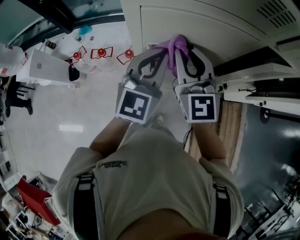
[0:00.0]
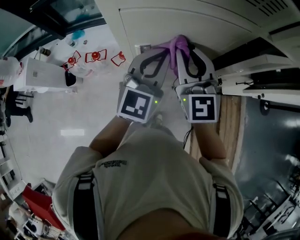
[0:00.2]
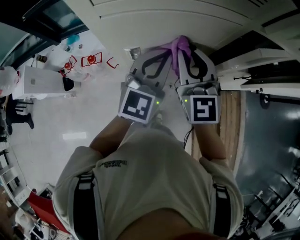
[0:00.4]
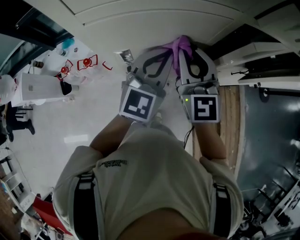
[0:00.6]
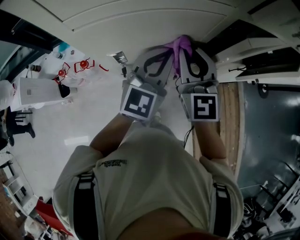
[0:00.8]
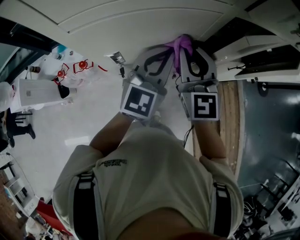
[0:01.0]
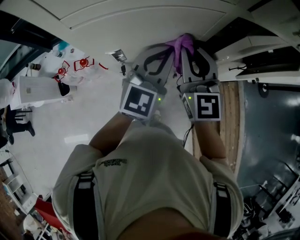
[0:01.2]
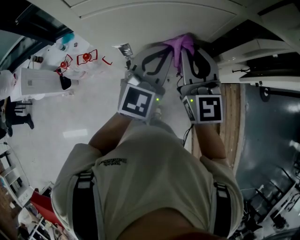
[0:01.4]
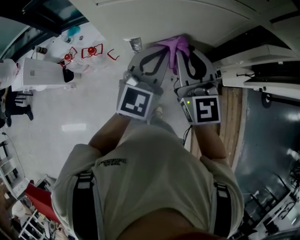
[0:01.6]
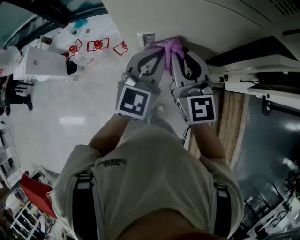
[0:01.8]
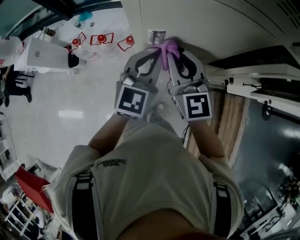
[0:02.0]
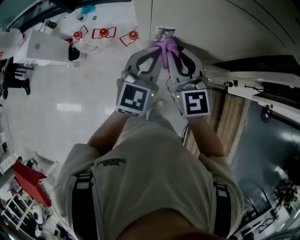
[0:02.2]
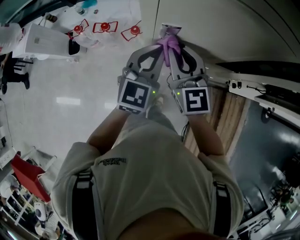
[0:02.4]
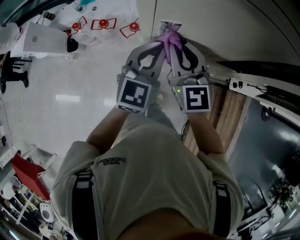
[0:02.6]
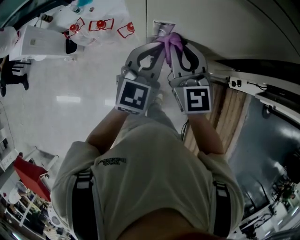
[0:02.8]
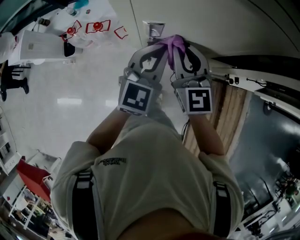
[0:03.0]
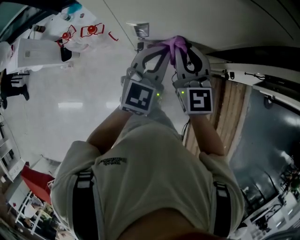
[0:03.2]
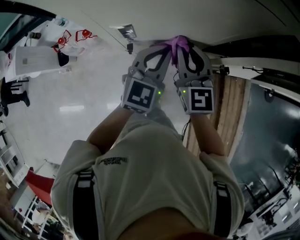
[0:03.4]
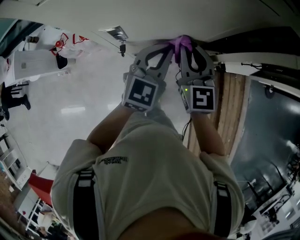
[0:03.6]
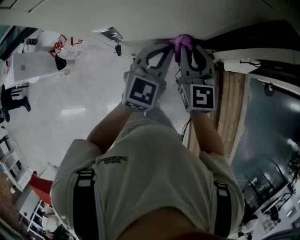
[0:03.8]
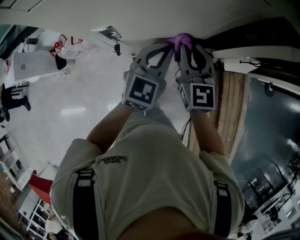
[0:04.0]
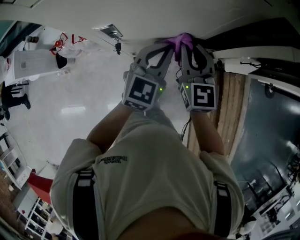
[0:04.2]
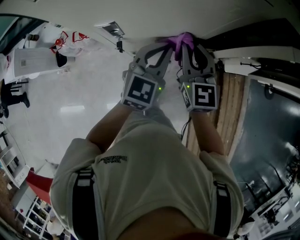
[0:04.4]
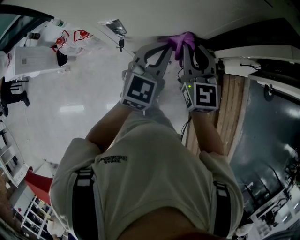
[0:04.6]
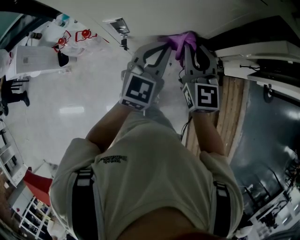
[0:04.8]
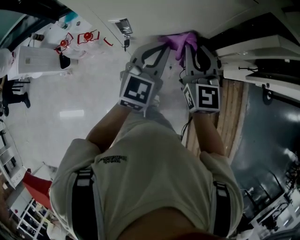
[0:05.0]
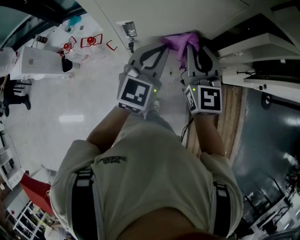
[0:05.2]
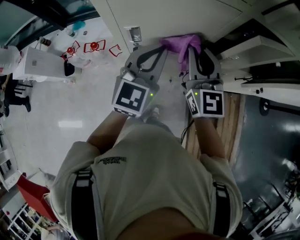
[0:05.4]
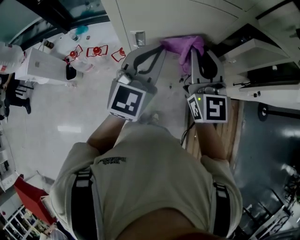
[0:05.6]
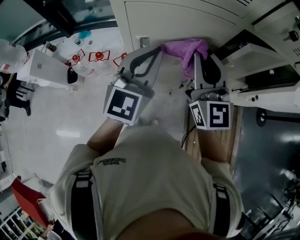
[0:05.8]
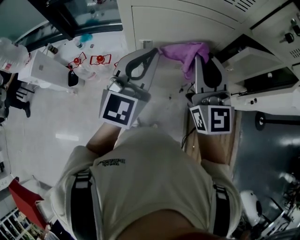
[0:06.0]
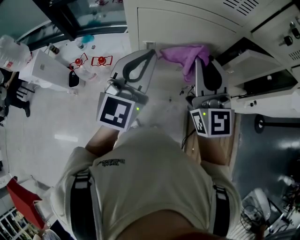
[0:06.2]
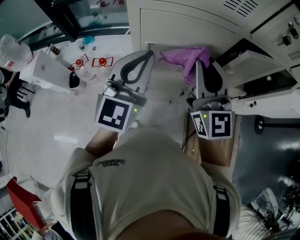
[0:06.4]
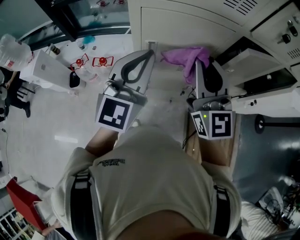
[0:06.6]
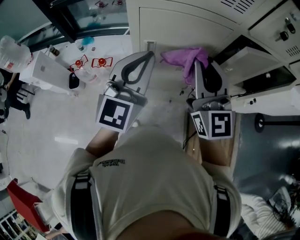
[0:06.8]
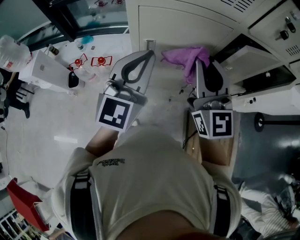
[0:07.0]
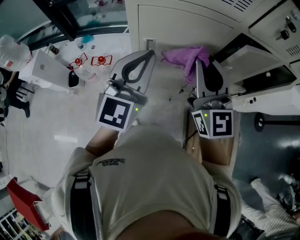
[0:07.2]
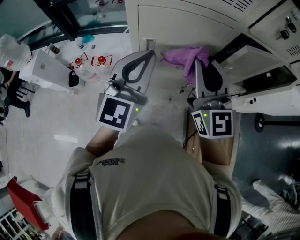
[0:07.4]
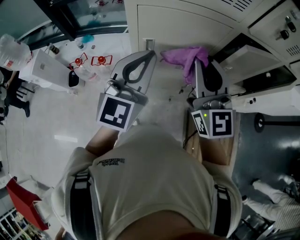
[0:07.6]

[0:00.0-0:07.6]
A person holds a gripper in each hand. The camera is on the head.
0.0 to 1.6 s: The grippers both shift to the right by approximately 5 cm.
1.6 to 3.0 s: The left gripper heads downward, covering roughly 10 cm; the right gripper is displaced downward and to the left by approximately 10 cm.
3.0 to 4.6 s: Both grippers travel together to the right, about 10 cm.
4.6 to 6.0 s: The left gripper moves upward and to the left, roughly 25 cm, and swivels approximately 20 degrees. The right gripper is displaced upward by roughly 20 cm, and turns by about 20 degrees.
6.0 to 7.6 s: The grippers stay close to where they were, moving slightly.

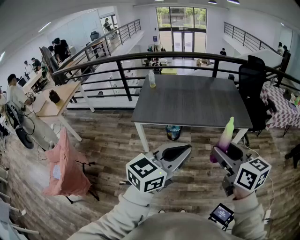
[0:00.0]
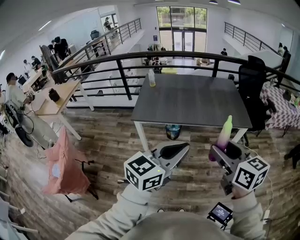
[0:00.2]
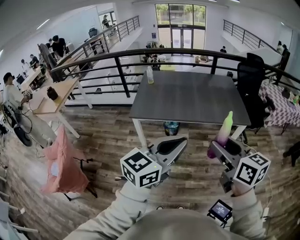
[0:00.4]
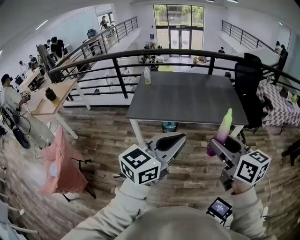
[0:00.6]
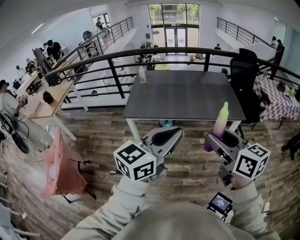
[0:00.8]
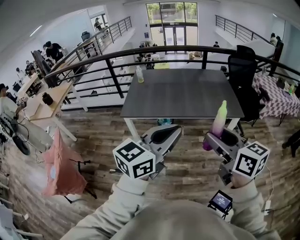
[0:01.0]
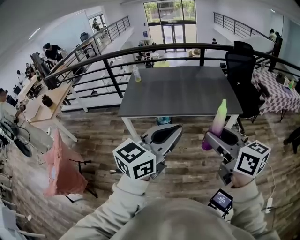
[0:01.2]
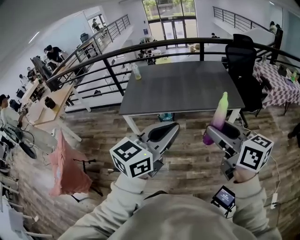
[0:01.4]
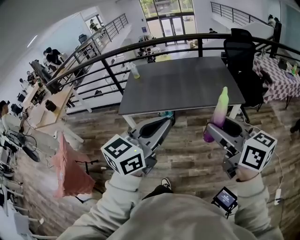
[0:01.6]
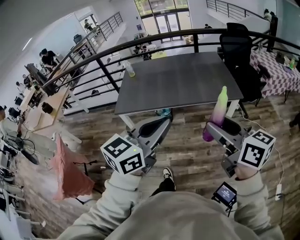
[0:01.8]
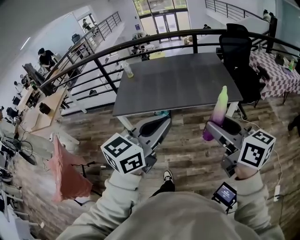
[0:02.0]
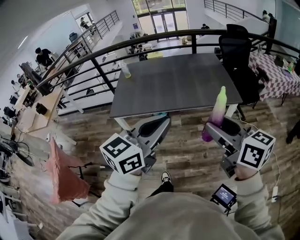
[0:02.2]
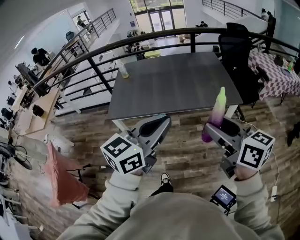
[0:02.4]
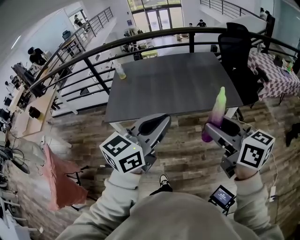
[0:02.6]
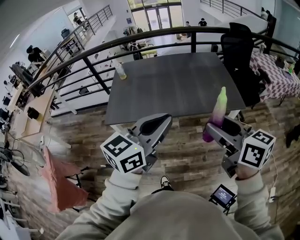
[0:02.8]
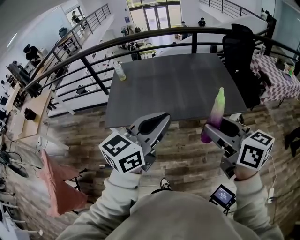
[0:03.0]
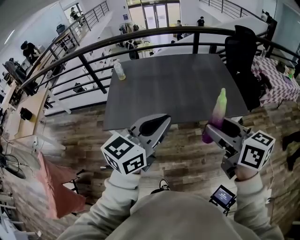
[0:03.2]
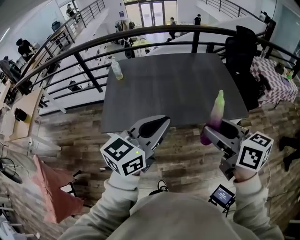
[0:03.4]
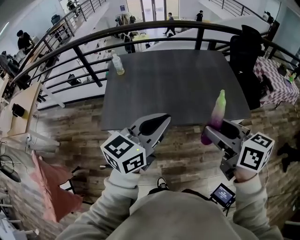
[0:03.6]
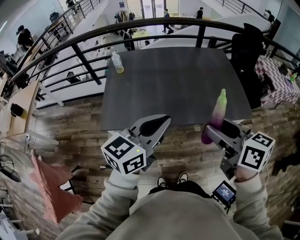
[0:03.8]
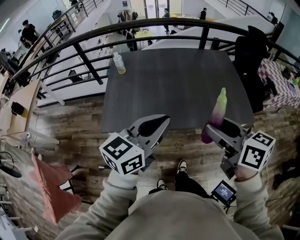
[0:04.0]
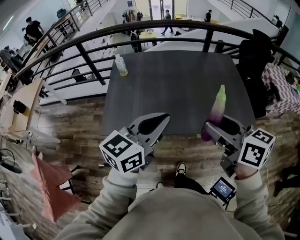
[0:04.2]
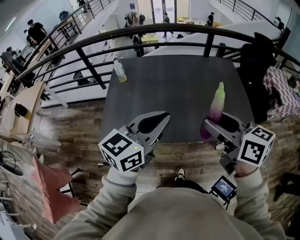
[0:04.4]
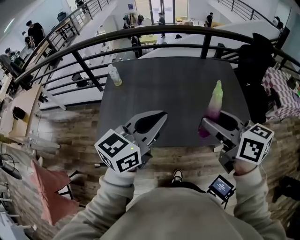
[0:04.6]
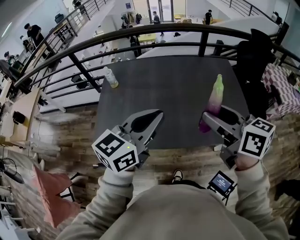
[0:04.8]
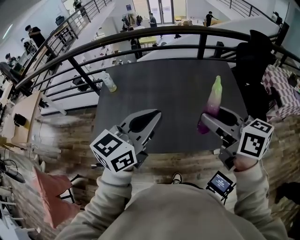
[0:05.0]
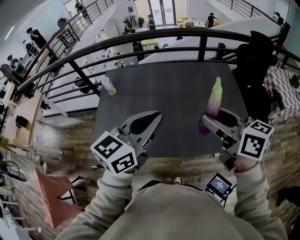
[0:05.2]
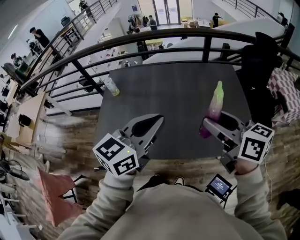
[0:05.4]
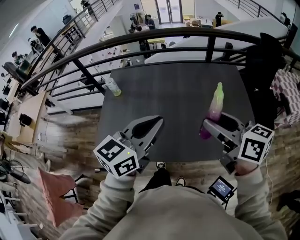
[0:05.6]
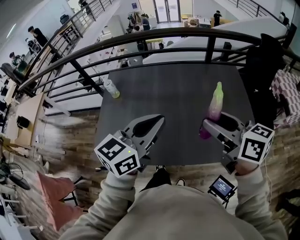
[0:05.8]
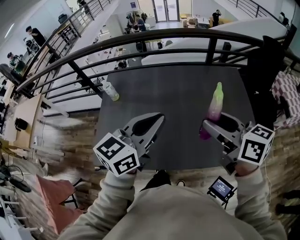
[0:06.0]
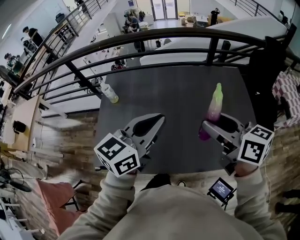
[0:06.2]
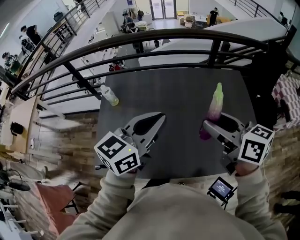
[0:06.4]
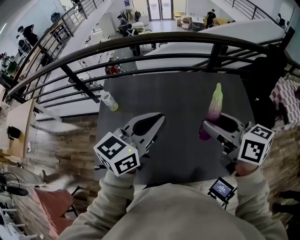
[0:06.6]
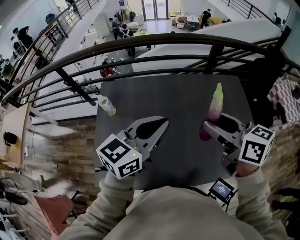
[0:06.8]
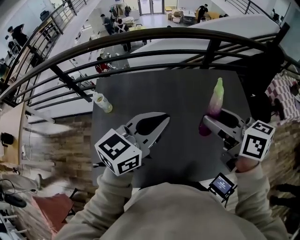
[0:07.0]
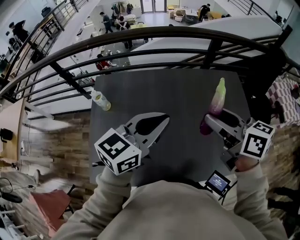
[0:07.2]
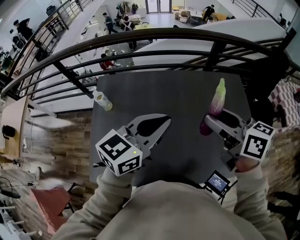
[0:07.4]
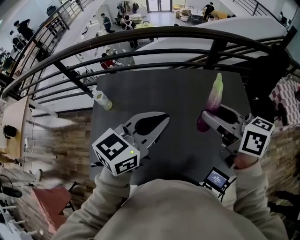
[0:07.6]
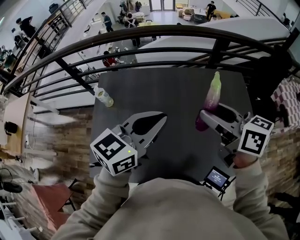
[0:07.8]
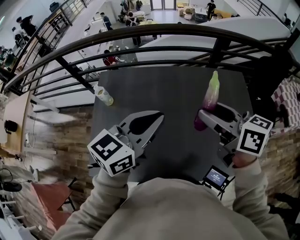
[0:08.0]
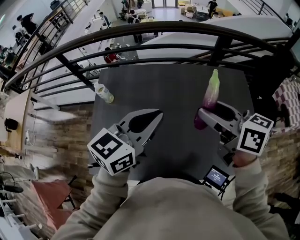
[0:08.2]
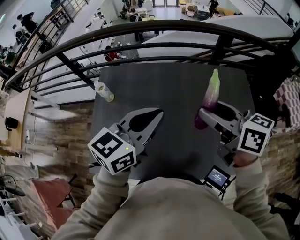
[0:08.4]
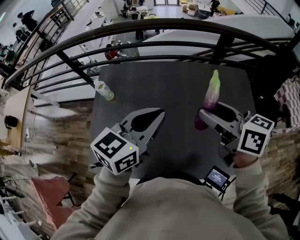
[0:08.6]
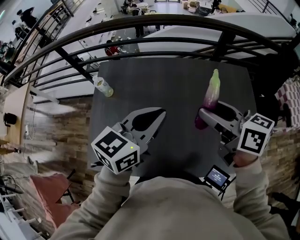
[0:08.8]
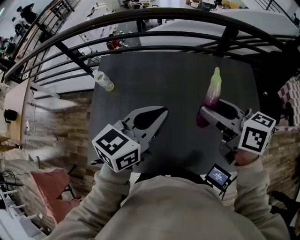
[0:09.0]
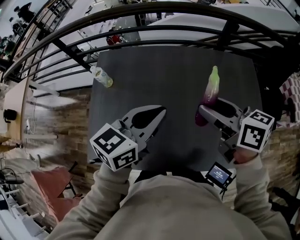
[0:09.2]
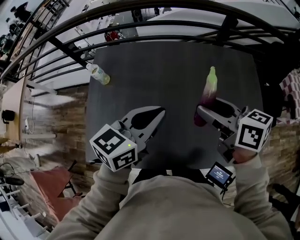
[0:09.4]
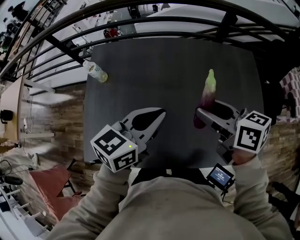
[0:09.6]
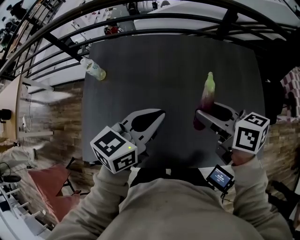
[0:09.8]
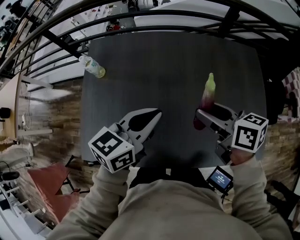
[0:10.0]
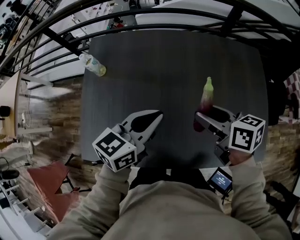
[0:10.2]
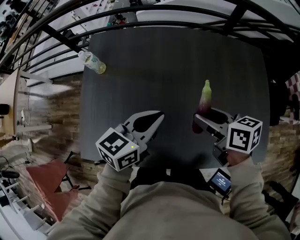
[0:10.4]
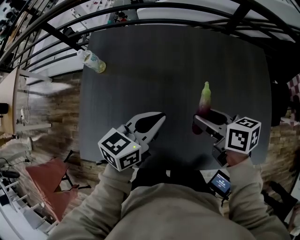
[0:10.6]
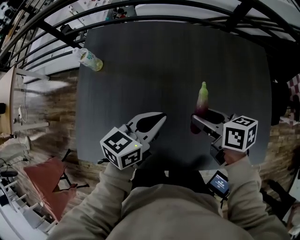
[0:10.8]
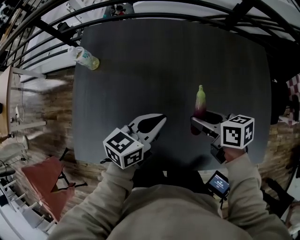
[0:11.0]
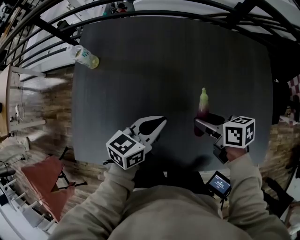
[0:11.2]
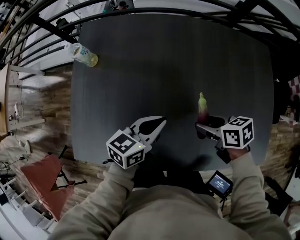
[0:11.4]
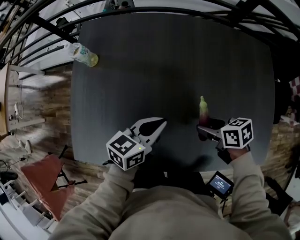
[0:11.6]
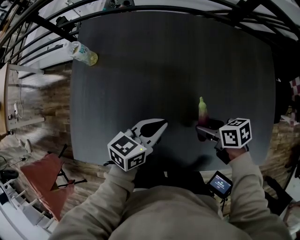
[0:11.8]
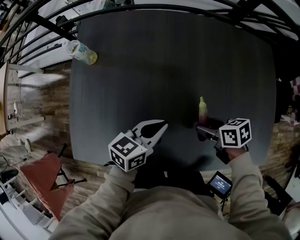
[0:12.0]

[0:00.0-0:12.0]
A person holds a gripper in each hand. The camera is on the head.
0.0 to 1.6 s: Both grippers travel together to the right, approximately 10 cm.
1.6 to 3.0 s: The grippers both shift forward by some 20 cm.
3.0 to 4.4 s: Both grippers move forward, about 20 cm.
4.4 to 6.0 s: Both grippers travel together forward, roughly 20 cm.
6.0 to 7.6 s: The grippers both shift forward by approximately 15 cm.
7.6 to 9.0 s: Both grippers move downward, roughly 5 cm.
9.0 to 10.4 s: Both grippers move downward, about 15 cm.
10.4 to 12.0 s: Both grippers move downward, about 15 cm. The right gripper rotates roughly 20 degrees.

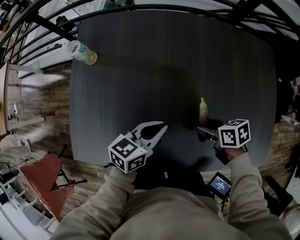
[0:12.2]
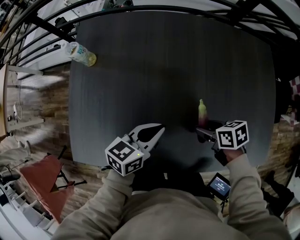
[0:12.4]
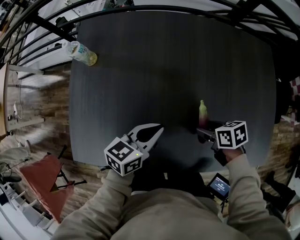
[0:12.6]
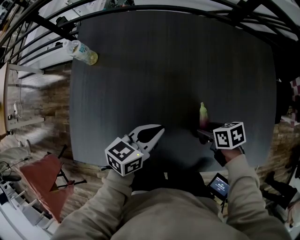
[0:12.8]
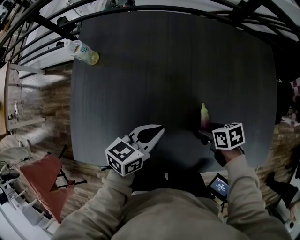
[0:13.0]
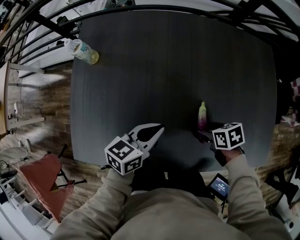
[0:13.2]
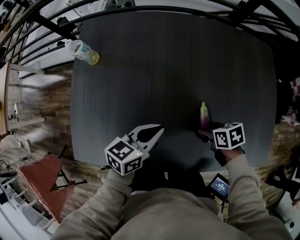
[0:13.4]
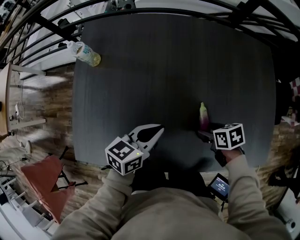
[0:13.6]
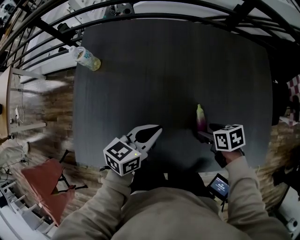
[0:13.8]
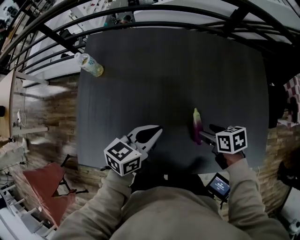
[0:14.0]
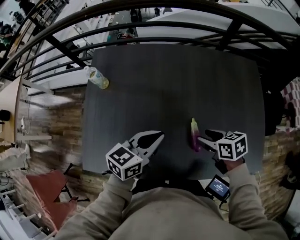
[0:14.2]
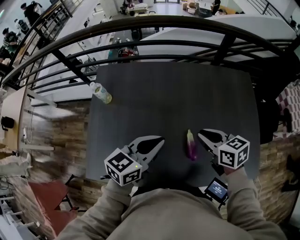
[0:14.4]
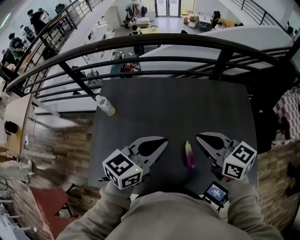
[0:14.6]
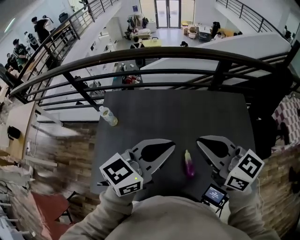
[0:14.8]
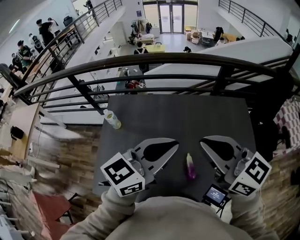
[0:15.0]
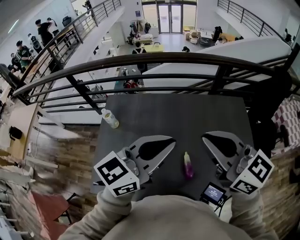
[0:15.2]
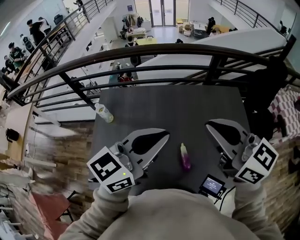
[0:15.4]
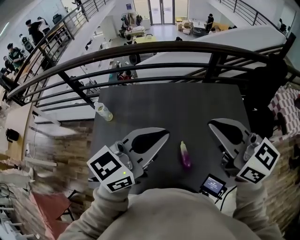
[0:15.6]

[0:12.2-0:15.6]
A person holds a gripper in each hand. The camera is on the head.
12.2 to 13.8 s: The grippers stay close to where they were, moving slightly.
13.8 to 15.6 s: Both grippers travel together upward, approximately 40 cm. The left gripper swivels some 40 degrees, while the right gripper tilts its fingers approximately 60 degrees upward, and closes up.

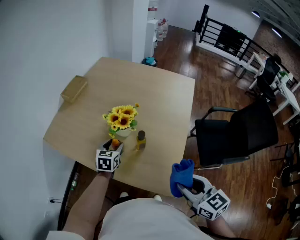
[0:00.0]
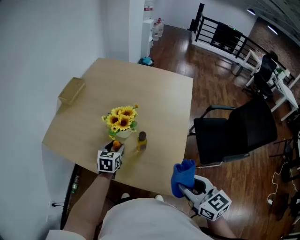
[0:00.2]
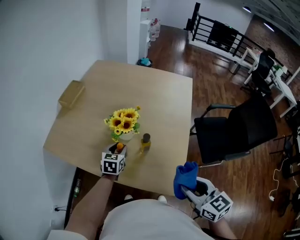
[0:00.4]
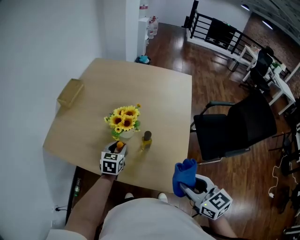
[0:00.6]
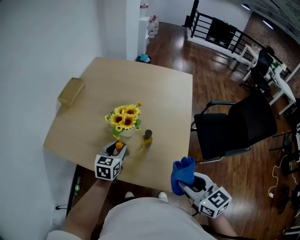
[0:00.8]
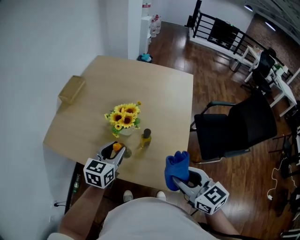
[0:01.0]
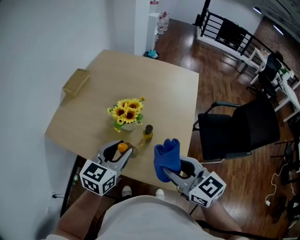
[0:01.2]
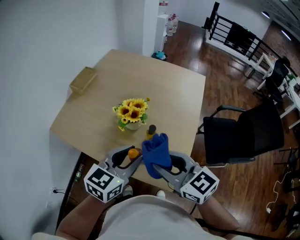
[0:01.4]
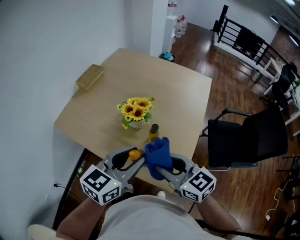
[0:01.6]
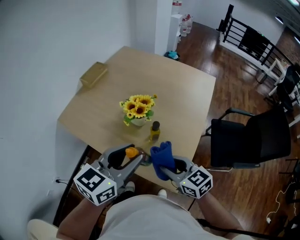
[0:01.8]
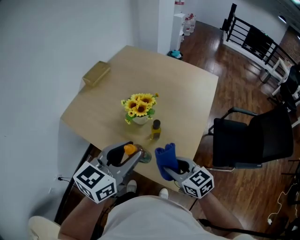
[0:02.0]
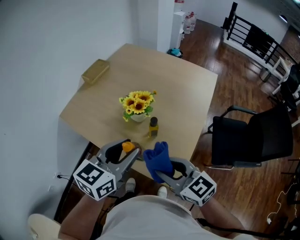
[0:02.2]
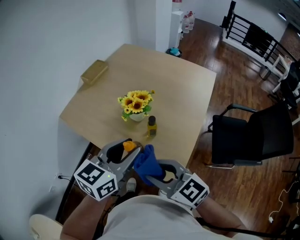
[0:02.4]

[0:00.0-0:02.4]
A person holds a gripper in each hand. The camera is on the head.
0.0 to 1.2 s: The left gripper is displaced upward and backward by about 20 cm, and turns by roughly 20 degrees. Meanwhile the right gripper moves to the left and forward, approximately 10 cm.
1.2 to 2.4 s: The left gripper heads backward and upward, covering some 10 cm, while the right gripper moves backward, some 5 cm, travels downward and back again, some 10 cm each way, and changes its angle by about 20 degrees.
